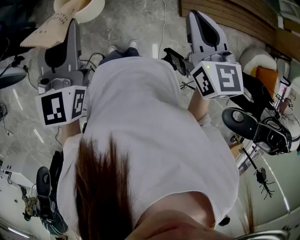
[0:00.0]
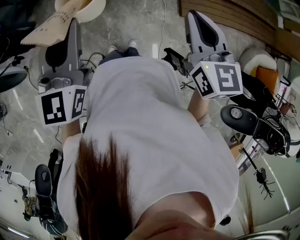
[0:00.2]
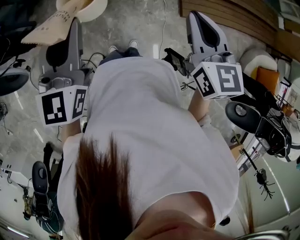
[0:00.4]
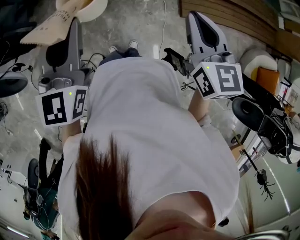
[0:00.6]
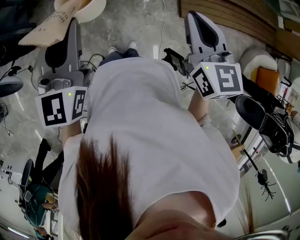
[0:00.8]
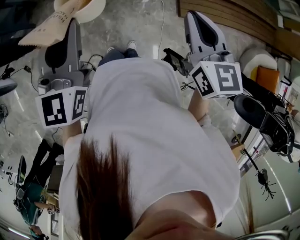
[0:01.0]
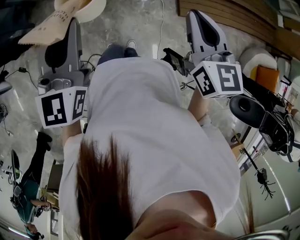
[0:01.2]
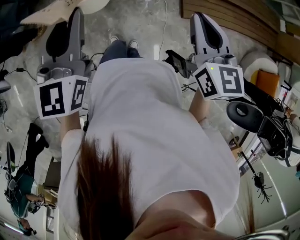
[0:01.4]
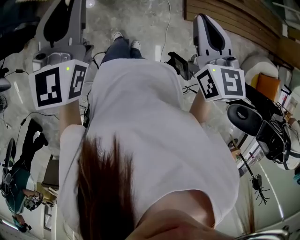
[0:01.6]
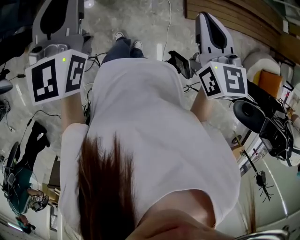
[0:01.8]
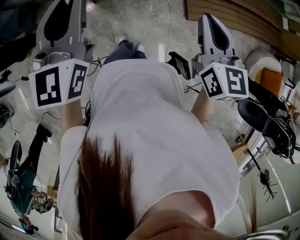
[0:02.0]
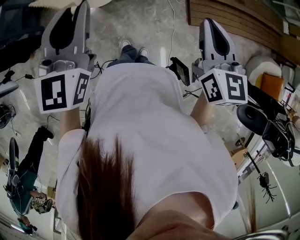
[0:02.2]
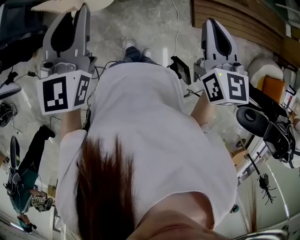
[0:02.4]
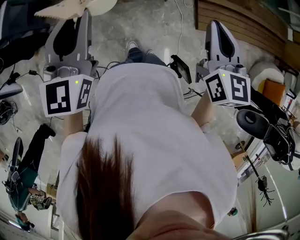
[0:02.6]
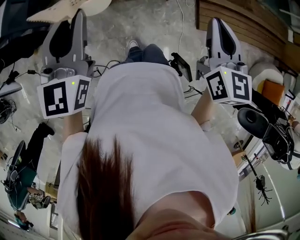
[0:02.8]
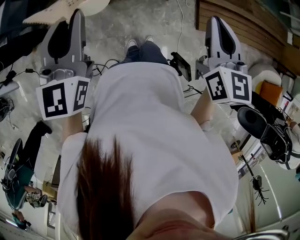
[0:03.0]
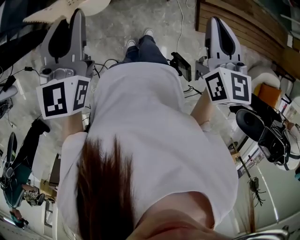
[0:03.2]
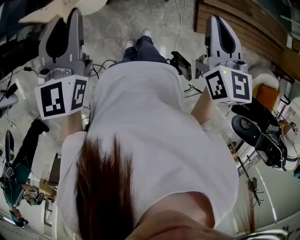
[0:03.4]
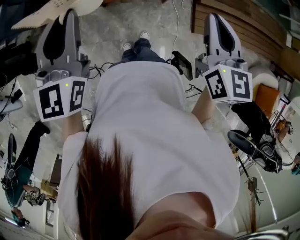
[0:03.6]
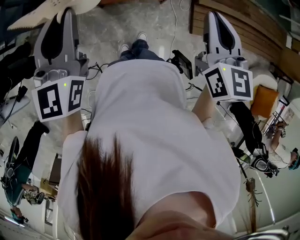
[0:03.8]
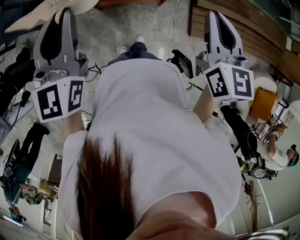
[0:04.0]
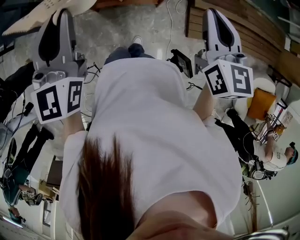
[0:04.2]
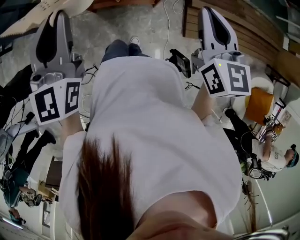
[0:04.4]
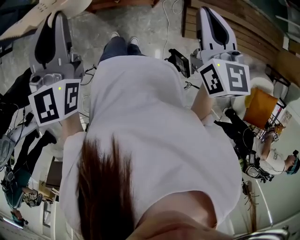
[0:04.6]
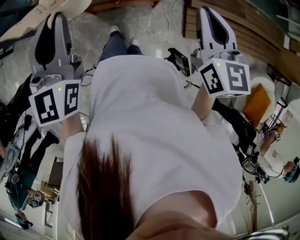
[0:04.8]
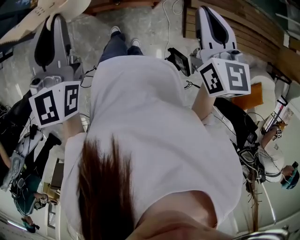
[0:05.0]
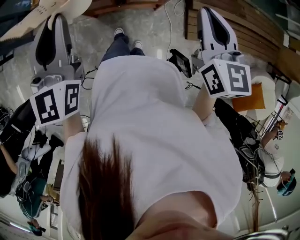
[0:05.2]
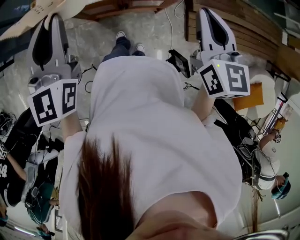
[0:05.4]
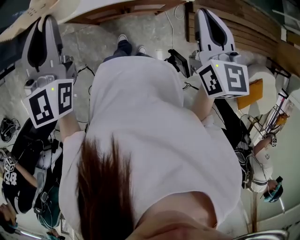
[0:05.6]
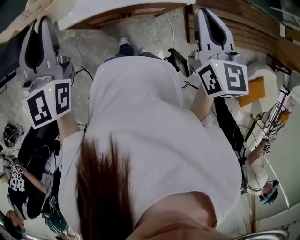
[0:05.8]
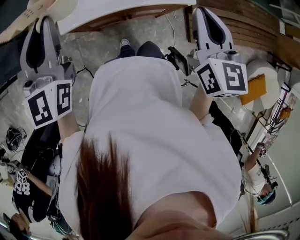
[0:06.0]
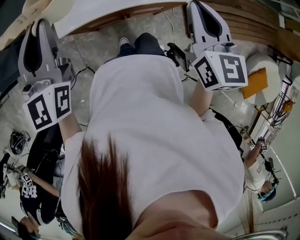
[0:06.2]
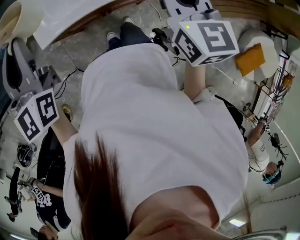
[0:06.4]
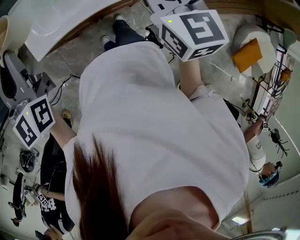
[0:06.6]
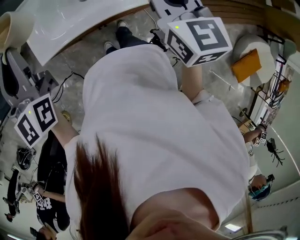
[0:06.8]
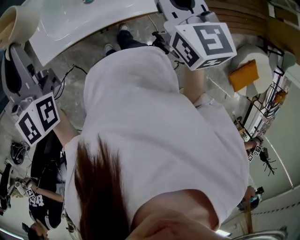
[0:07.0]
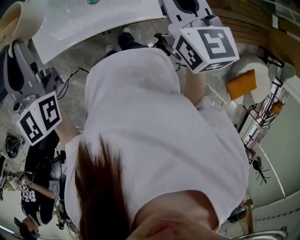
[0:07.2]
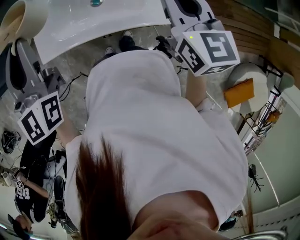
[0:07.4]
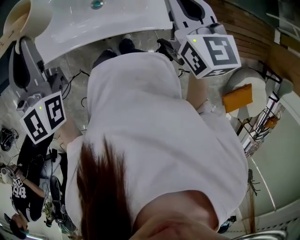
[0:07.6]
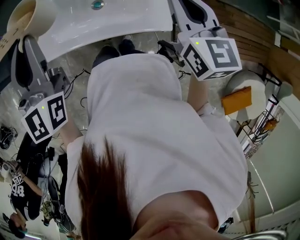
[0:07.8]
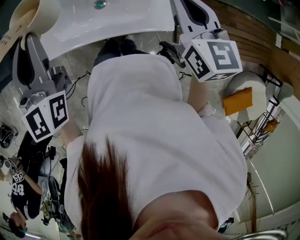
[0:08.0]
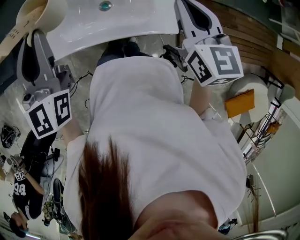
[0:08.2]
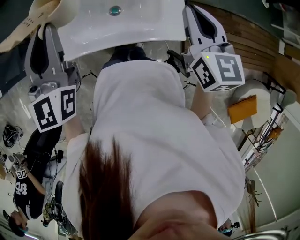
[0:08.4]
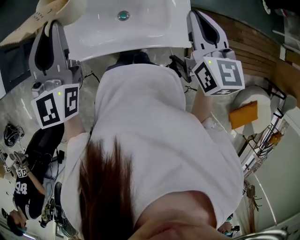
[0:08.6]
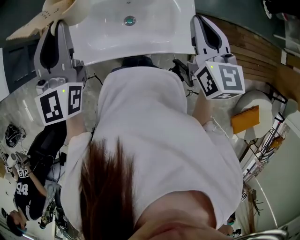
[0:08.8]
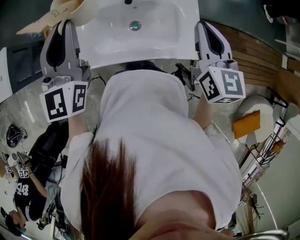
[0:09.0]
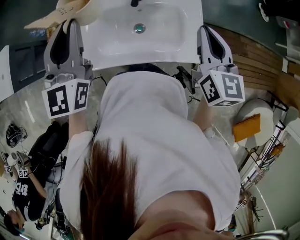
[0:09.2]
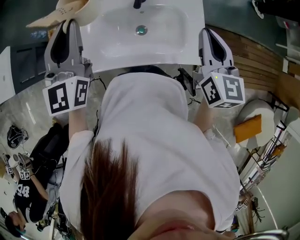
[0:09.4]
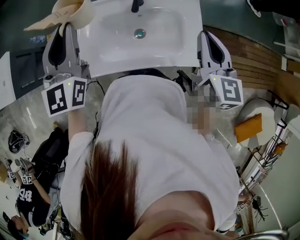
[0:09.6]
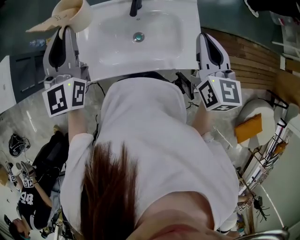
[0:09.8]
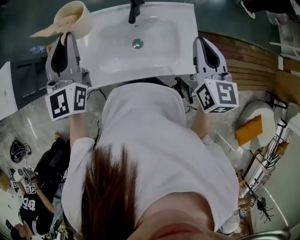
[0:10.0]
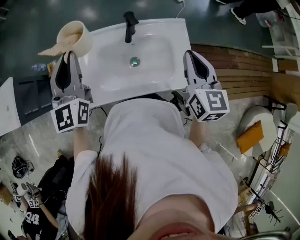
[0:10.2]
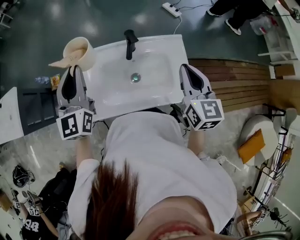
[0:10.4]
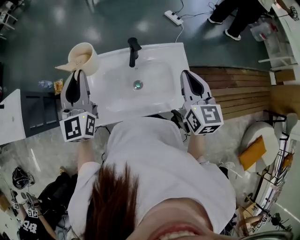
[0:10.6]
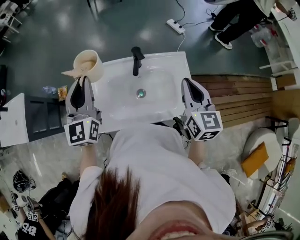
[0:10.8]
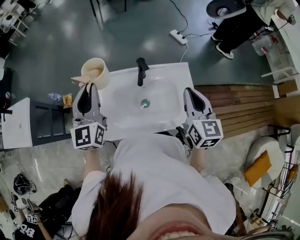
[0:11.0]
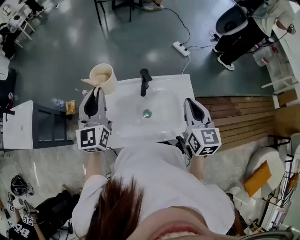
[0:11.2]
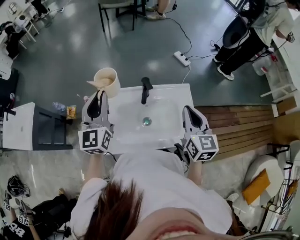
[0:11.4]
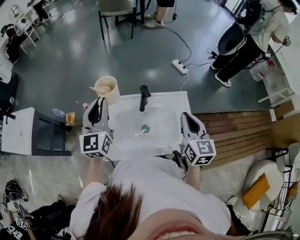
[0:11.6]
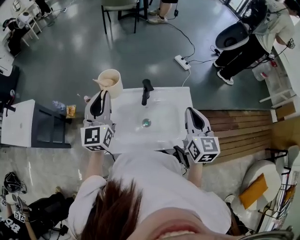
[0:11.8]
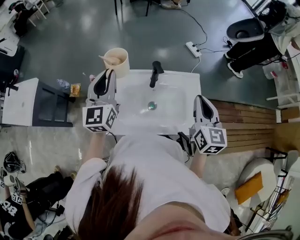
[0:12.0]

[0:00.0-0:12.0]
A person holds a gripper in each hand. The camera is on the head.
0:00.0 to 0:01.6: The left gripper moves forward, roughly 10 cm.
0:01.6 to 0:03.0: The left gripper shifts approximately 10 cm to the left; the right gripper shifts about 10 cm to the left and forward.
0:03.0 to 0:04.4: Both grippers travel together forward and to the right, about 15 cm.
0:04.4 to 0:06.0: The left gripper goes forward and backward, about 20 cm each way, reversing 2 times. Meanwhile the right gripper goes forward and backward, some 15 cm each way, reversing 2 times.
0:06.0 to 0:07.6: Both grippers move forward and to the right, approximately 15 cm.
0:07.6 to 0:09.0: The right gripper goes roughly 5 cm to the left. The left gripper heads forward and to the left, covering approximately 5 cm.
0:09.0 to 0:10.4: The left gripper travels forward by about 5 cm.
0:10.4 to 0:12.0: There are only small adjustments of the grippers.

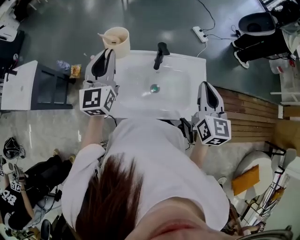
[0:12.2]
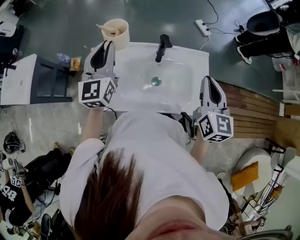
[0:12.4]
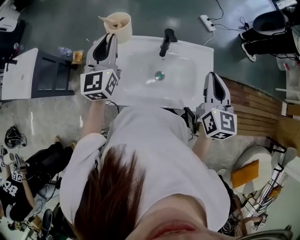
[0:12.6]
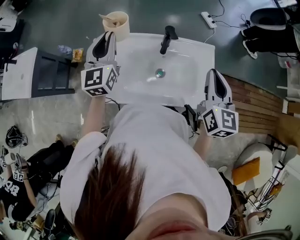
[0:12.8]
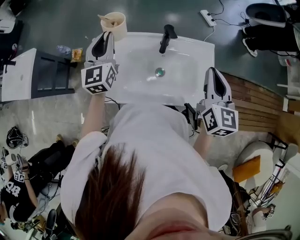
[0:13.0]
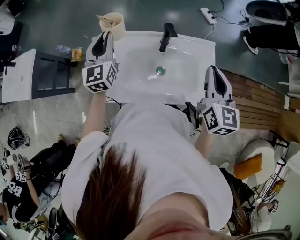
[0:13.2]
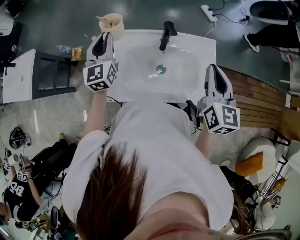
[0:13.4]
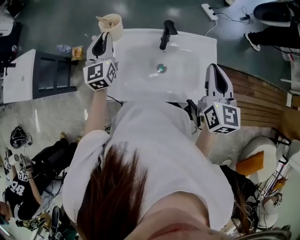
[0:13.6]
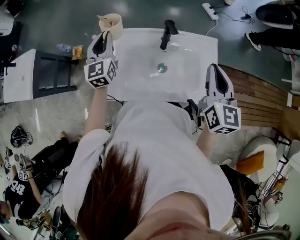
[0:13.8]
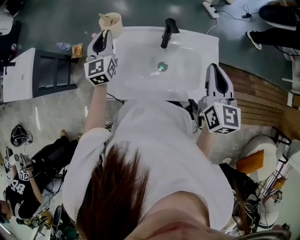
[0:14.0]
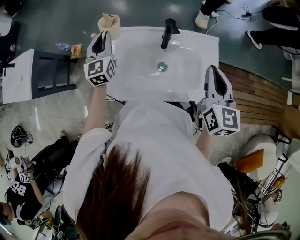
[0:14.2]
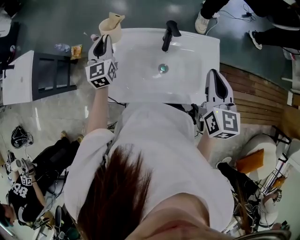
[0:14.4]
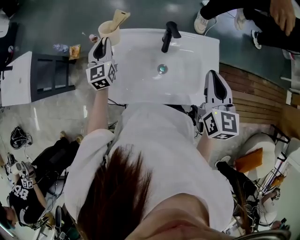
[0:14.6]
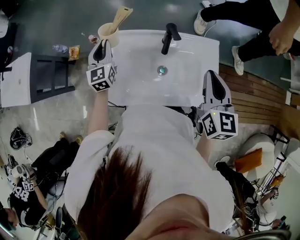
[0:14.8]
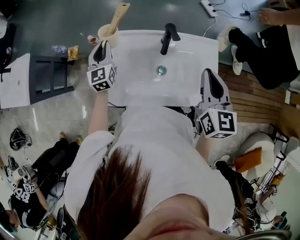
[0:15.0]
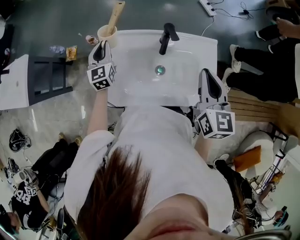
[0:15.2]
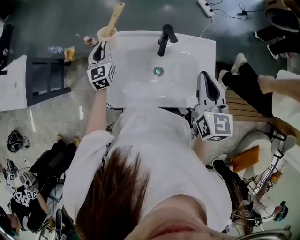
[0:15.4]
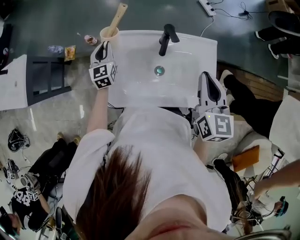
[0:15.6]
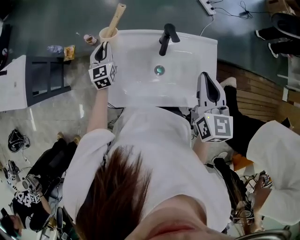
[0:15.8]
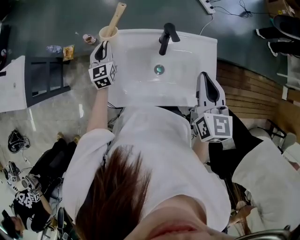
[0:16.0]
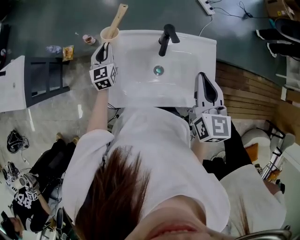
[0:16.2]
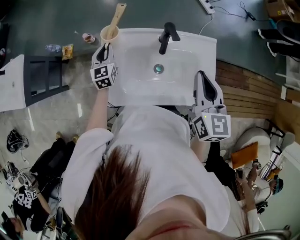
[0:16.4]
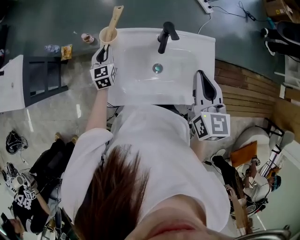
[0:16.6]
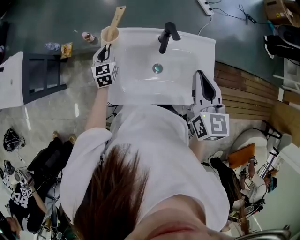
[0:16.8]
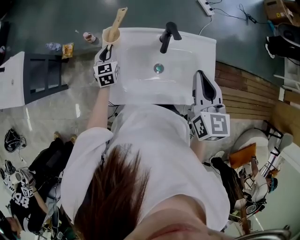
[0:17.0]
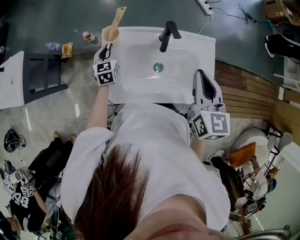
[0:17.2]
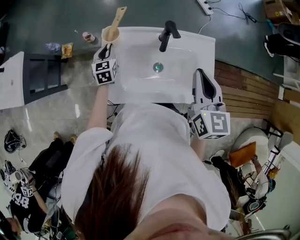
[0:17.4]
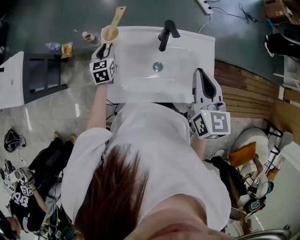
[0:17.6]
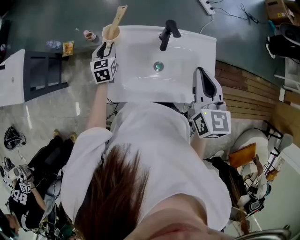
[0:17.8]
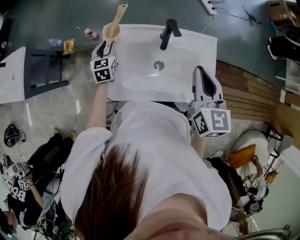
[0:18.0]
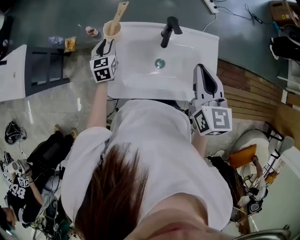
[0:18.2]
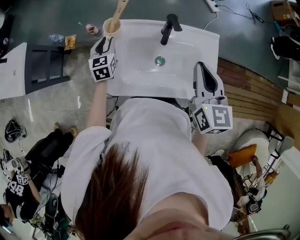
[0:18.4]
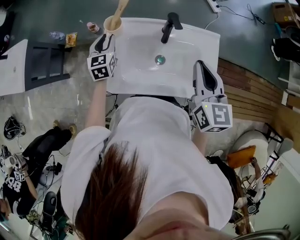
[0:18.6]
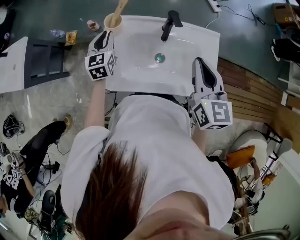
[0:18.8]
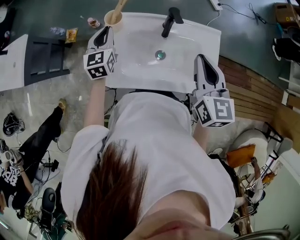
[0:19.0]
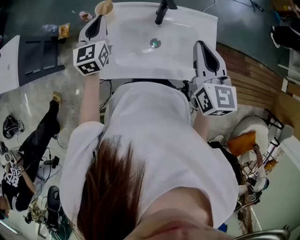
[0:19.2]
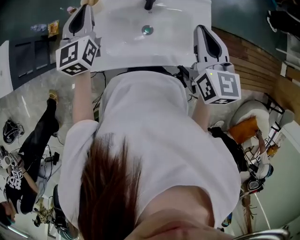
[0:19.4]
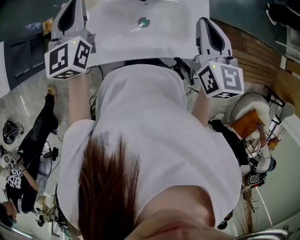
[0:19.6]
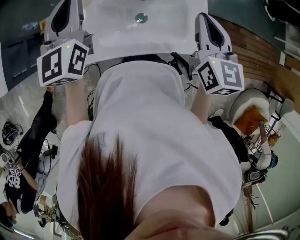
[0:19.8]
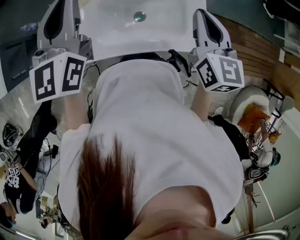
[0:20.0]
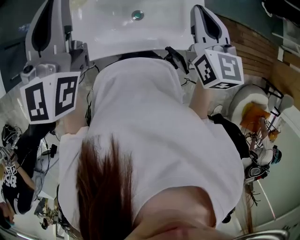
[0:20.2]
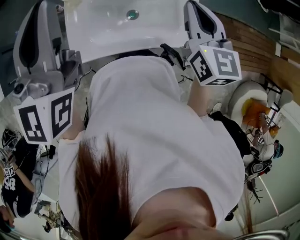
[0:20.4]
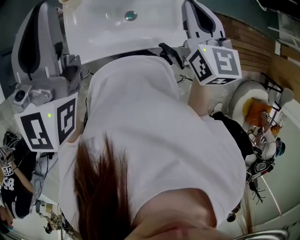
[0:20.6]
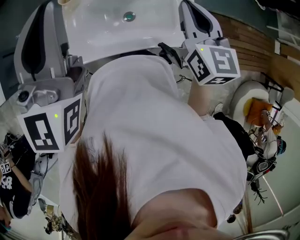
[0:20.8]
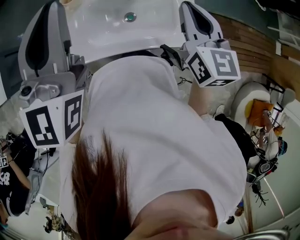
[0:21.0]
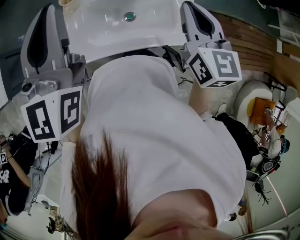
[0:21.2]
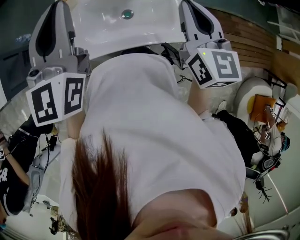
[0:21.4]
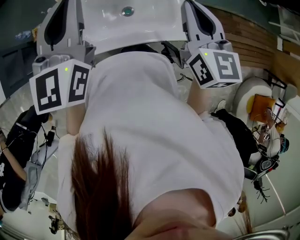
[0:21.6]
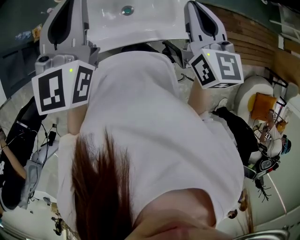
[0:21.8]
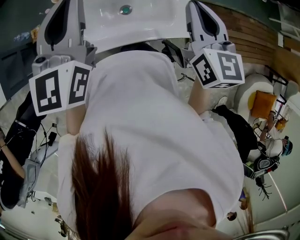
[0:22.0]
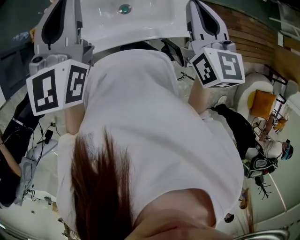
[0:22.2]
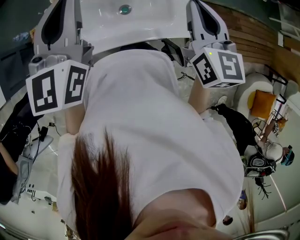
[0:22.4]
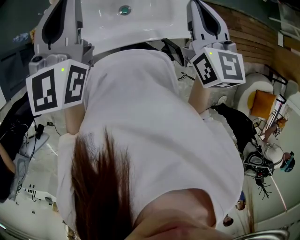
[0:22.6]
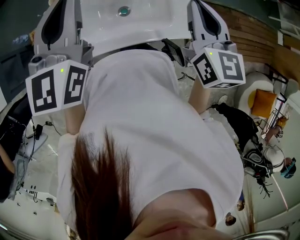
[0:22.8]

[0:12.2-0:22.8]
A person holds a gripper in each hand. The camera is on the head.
0:12.2 to 0:13.8: The left gripper shifts roughly 10 cm downward.
0:13.8 to 0:15.2: The left gripper moves downward, approximately 10 cm.
0:15.2 to 0:16.8: The left gripper goes approximately 5 cm downward.
0:16.8 to 0:18.2: The grippers move only a little.
0:18.2 to 0:19.8: The right gripper changes place by approximately 5 cm. The left gripper shifts about 25 cm upward, changes its angle by approximately 30 degrees, and closes up.
0:19.8 to 0:21.2: The left gripper goes roughly 10 cm backward and upward.
0:21.2 to 0:22.8: The left gripper moves downward, approximately 5 cm.

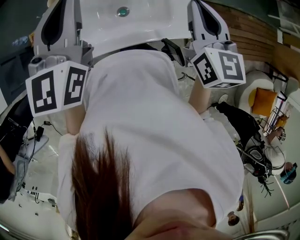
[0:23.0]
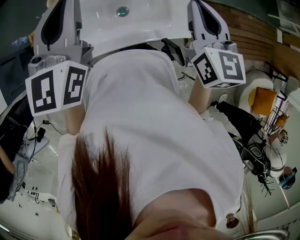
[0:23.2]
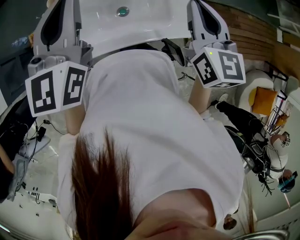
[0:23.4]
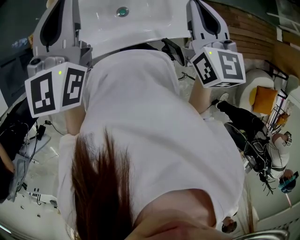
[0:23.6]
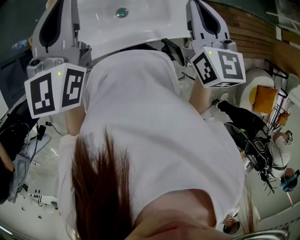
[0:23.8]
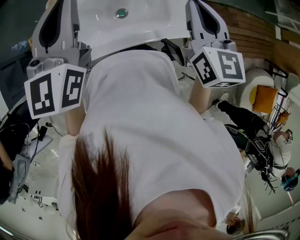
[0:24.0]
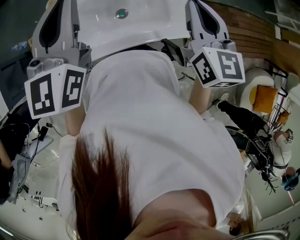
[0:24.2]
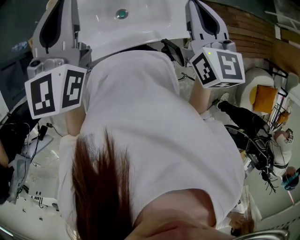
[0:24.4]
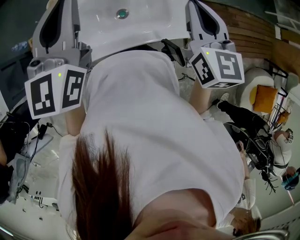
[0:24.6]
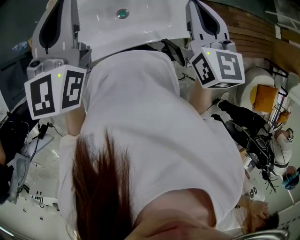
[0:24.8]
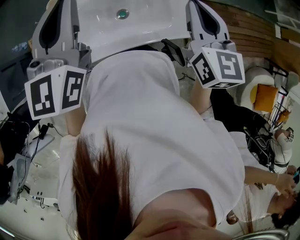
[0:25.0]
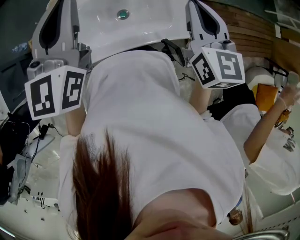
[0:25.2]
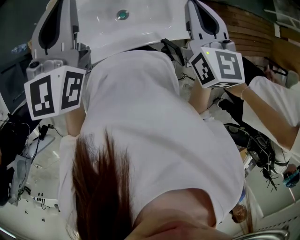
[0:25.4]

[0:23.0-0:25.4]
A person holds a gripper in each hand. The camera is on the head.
0:23.0 to 0:24.2: The grippers make only small movements.
0:24.2 to 0:25.4: The two grippers keep their place.
